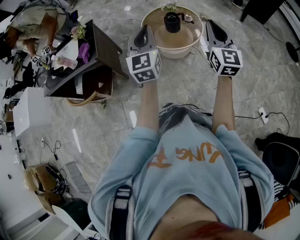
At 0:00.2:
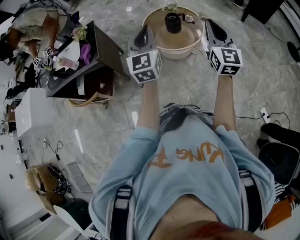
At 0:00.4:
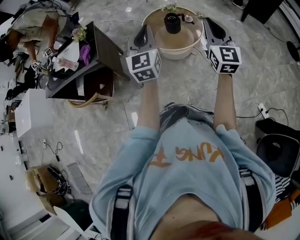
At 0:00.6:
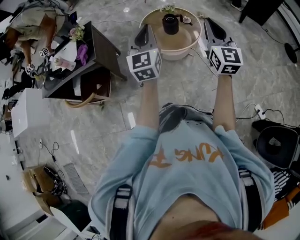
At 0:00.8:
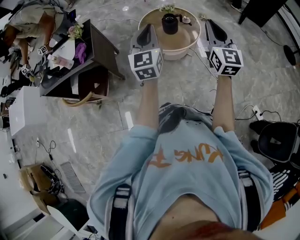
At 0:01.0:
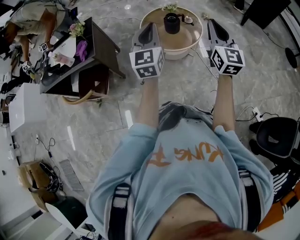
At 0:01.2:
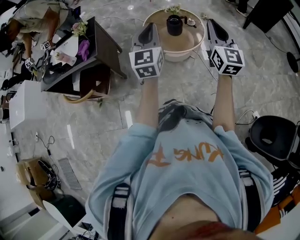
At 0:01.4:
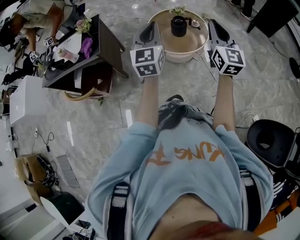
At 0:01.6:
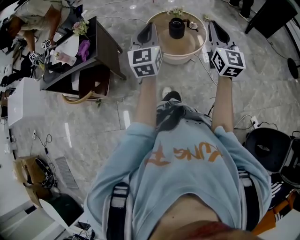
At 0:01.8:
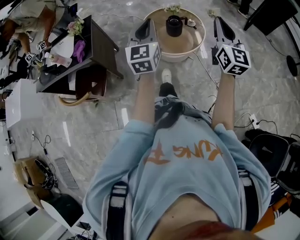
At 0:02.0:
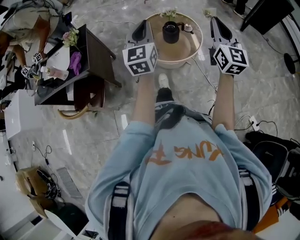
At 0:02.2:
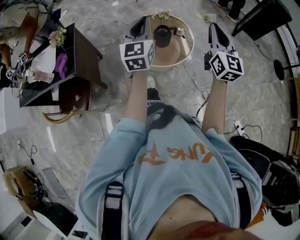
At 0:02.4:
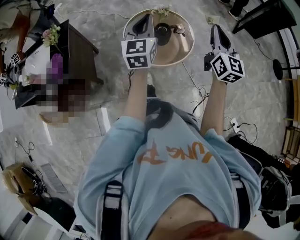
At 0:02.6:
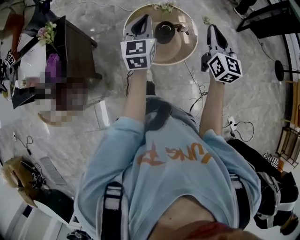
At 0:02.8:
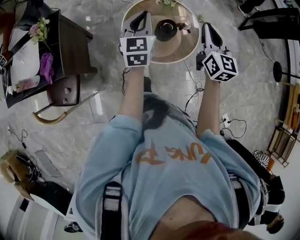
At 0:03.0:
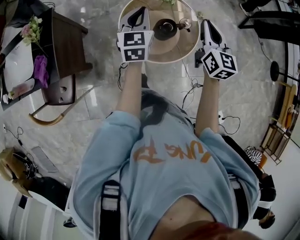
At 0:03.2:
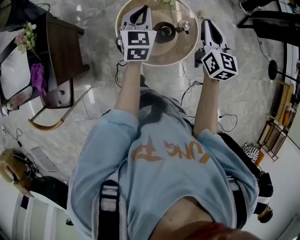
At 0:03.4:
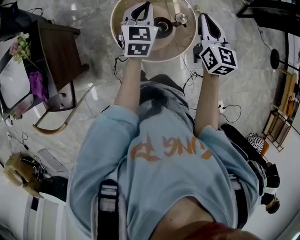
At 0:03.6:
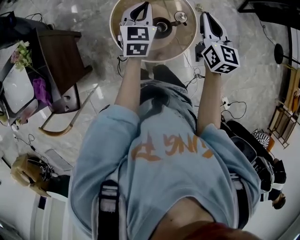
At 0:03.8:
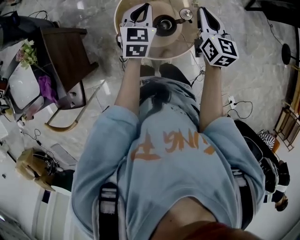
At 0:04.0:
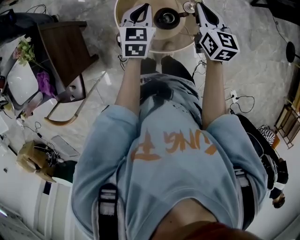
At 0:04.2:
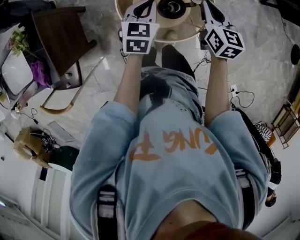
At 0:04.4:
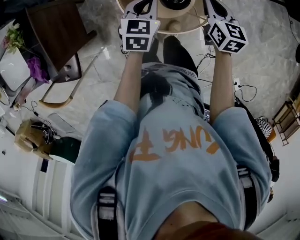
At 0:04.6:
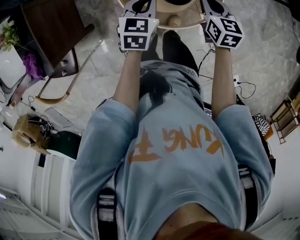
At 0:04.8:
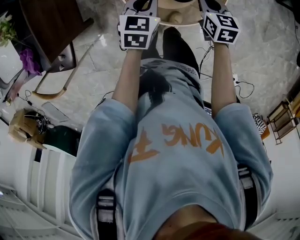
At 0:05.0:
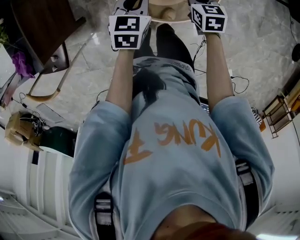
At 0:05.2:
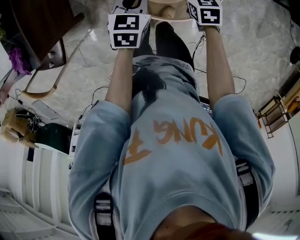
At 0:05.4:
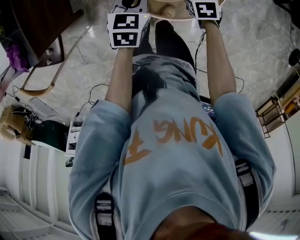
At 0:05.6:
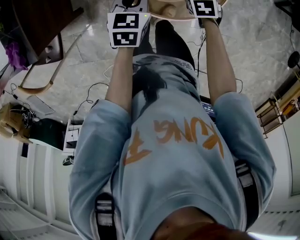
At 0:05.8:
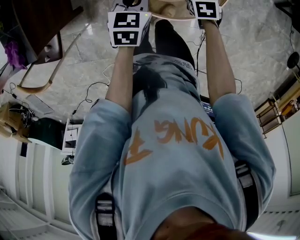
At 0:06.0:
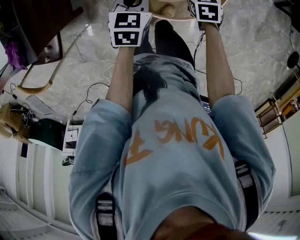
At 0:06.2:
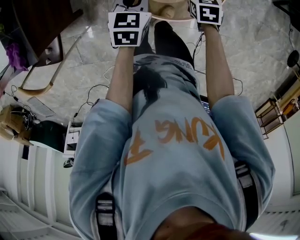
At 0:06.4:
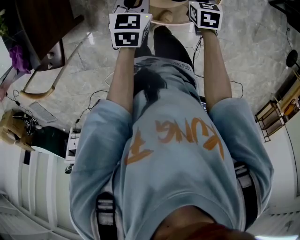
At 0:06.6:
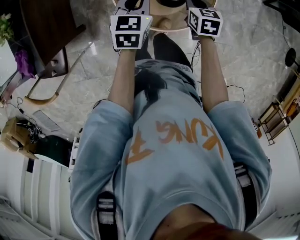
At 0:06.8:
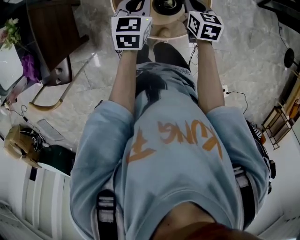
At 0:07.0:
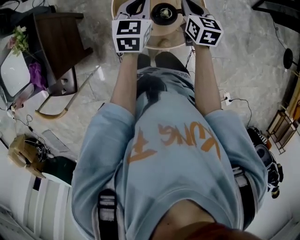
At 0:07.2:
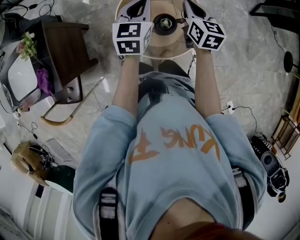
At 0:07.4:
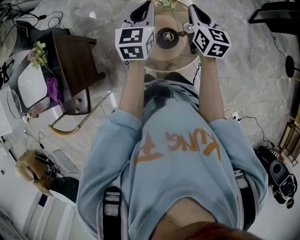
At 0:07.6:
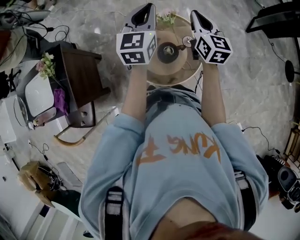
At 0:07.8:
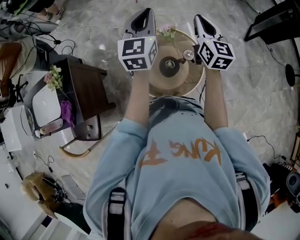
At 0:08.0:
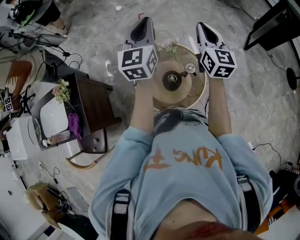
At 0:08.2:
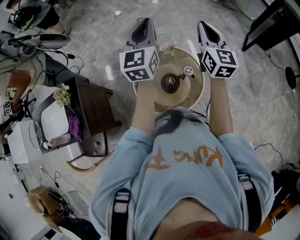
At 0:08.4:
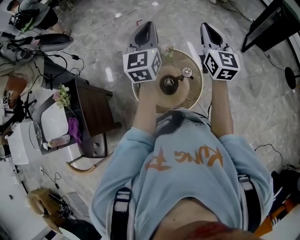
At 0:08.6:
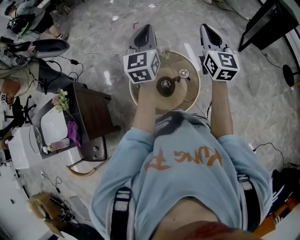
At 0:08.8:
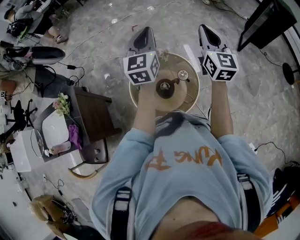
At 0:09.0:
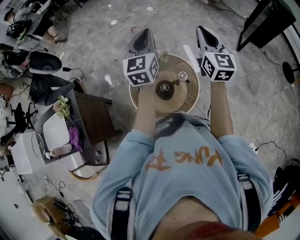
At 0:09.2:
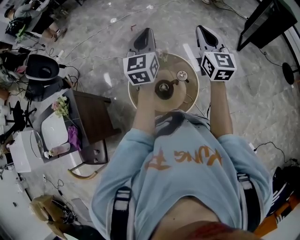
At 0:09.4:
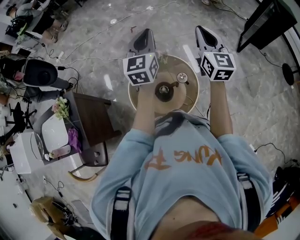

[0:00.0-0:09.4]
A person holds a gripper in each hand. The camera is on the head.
0:00.0 to 0:01.6: The grippers both shift forward by about 5 cm.
0:01.6 to 0:03.2: The two grippers travel together, forward, approximately 50 cm. The left gripper heads downward, covering approximately 20 cm, and rotates about 20 degrees. Meanwhile the right gripper swivels some 20 degrees.
0:03.2 to 0:04.8: The grippers both shift downward by roughly 20 cm. The left gripper rotates some 30 degrees; the right gripper rotates some 30 degrees.
0:04.8 to 0:06.2: The right gripper goes about 5 cm downward, and rotates approximately 20 degrees.
0:06.2 to 0:07.8: The grippers both shift upward by approximately 40 cm. The right gripper angles its fingers upward, by some 60 degrees; the left gripper tips its fingers upward by approximately 40 degrees.
0:07.8 to 0:09.4: The right gripper is displaced to the right and upward by some 10 cm. The left gripper moves to the right, roughly 5 cm.

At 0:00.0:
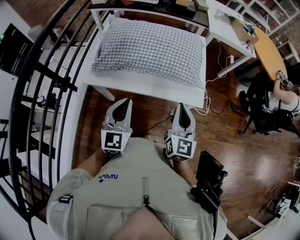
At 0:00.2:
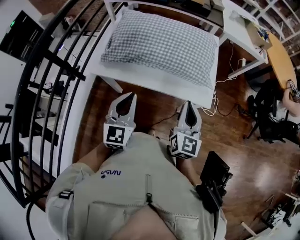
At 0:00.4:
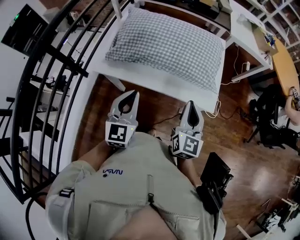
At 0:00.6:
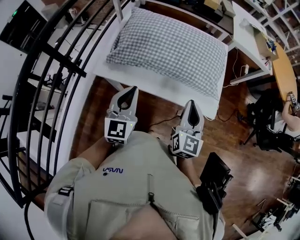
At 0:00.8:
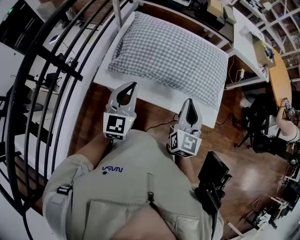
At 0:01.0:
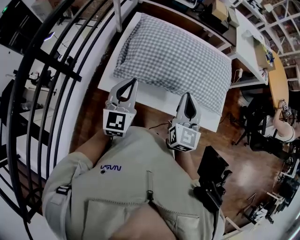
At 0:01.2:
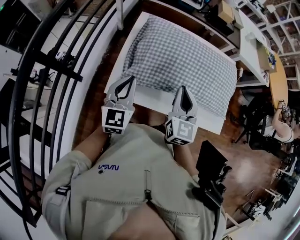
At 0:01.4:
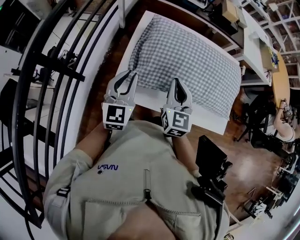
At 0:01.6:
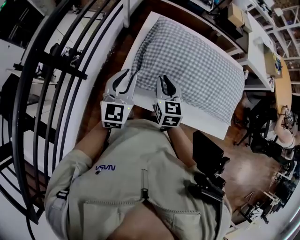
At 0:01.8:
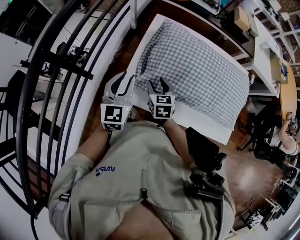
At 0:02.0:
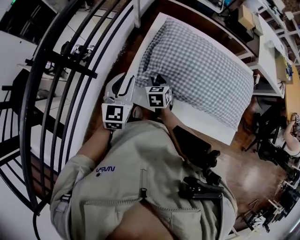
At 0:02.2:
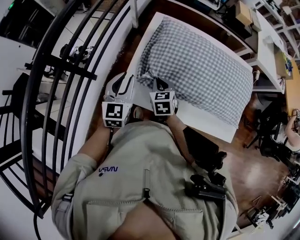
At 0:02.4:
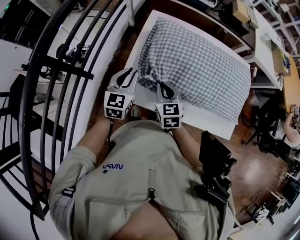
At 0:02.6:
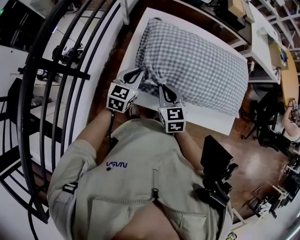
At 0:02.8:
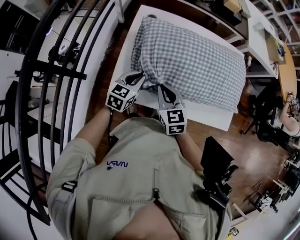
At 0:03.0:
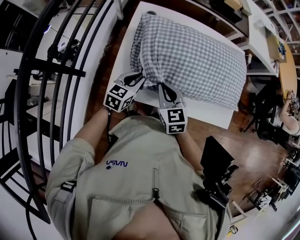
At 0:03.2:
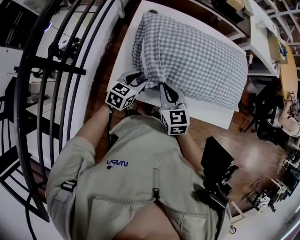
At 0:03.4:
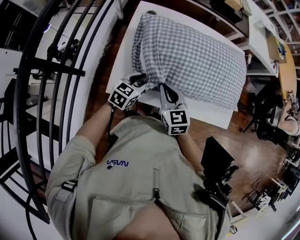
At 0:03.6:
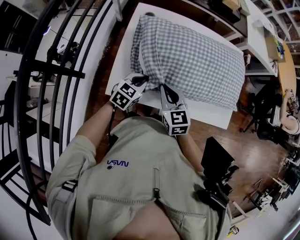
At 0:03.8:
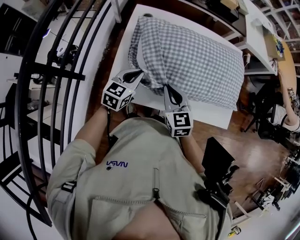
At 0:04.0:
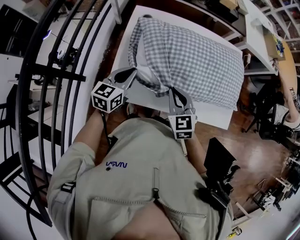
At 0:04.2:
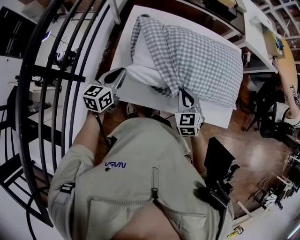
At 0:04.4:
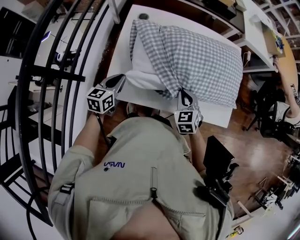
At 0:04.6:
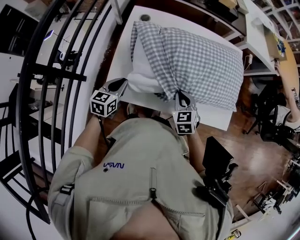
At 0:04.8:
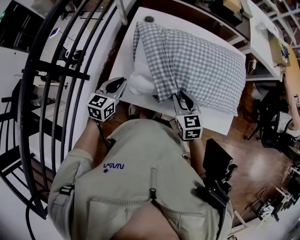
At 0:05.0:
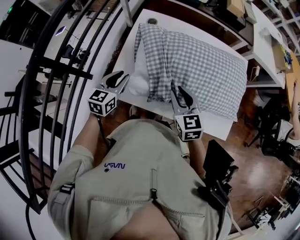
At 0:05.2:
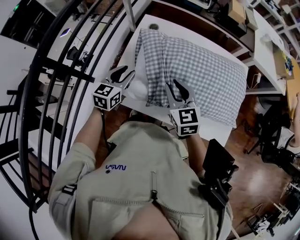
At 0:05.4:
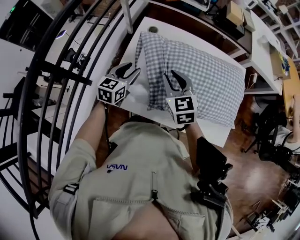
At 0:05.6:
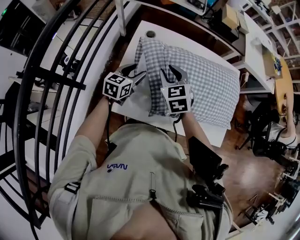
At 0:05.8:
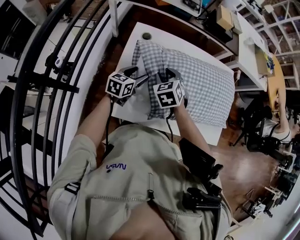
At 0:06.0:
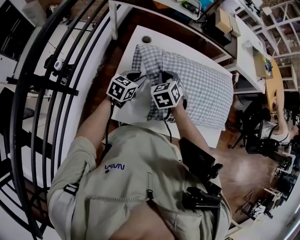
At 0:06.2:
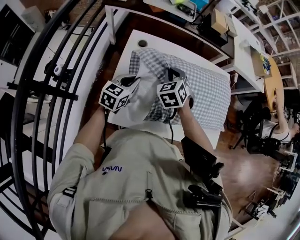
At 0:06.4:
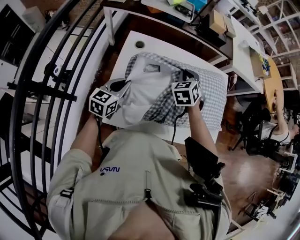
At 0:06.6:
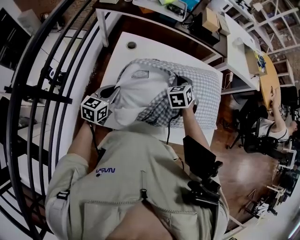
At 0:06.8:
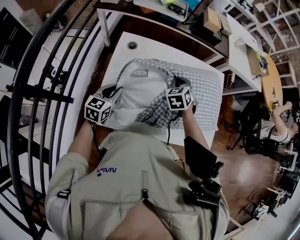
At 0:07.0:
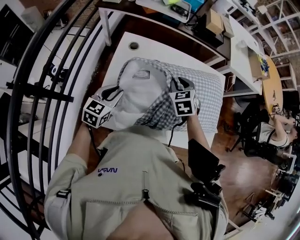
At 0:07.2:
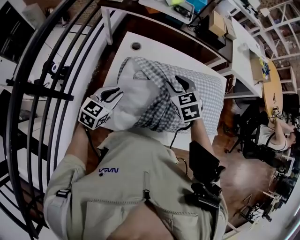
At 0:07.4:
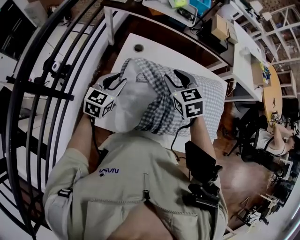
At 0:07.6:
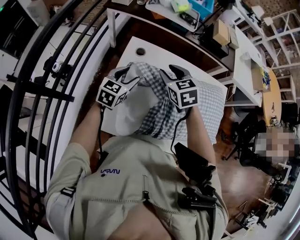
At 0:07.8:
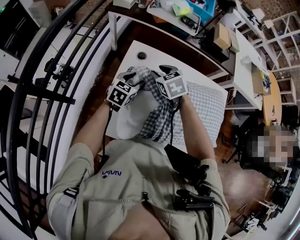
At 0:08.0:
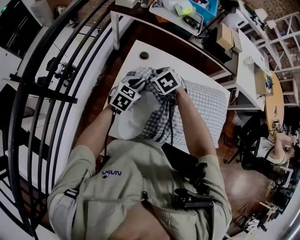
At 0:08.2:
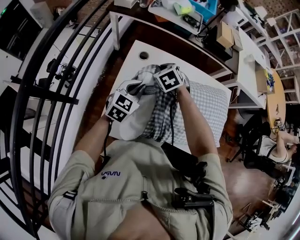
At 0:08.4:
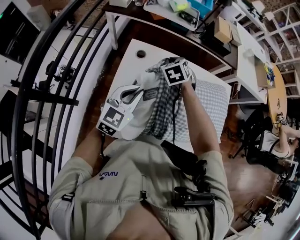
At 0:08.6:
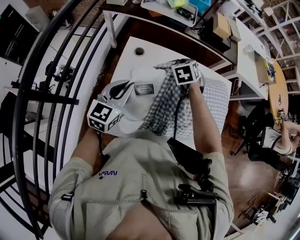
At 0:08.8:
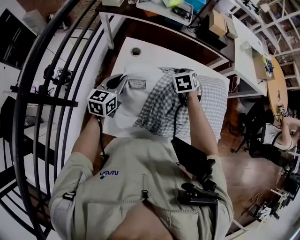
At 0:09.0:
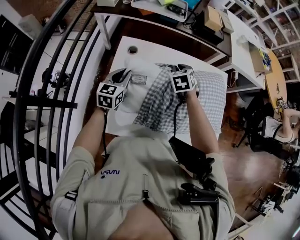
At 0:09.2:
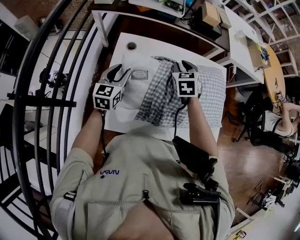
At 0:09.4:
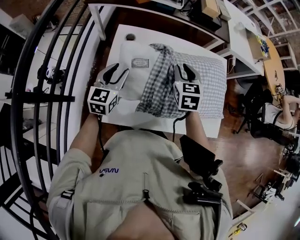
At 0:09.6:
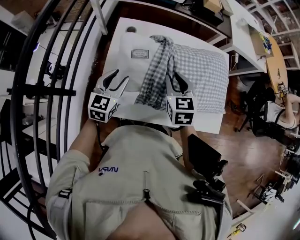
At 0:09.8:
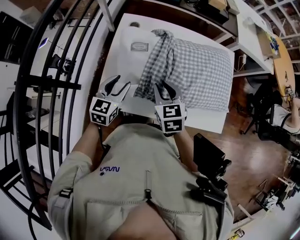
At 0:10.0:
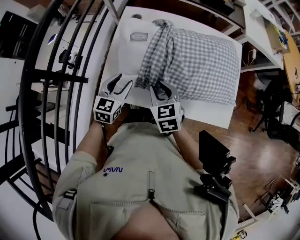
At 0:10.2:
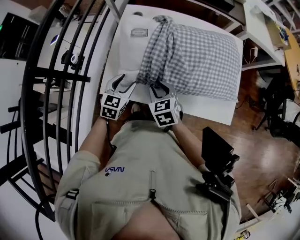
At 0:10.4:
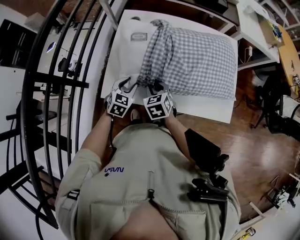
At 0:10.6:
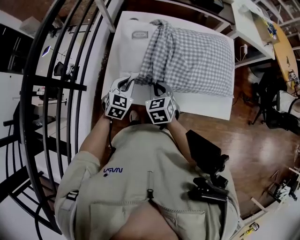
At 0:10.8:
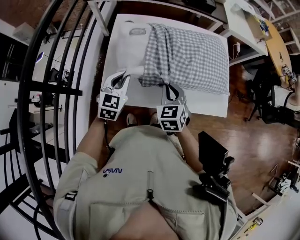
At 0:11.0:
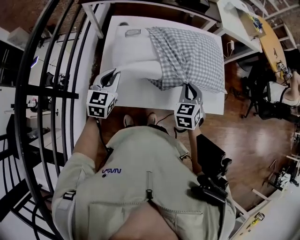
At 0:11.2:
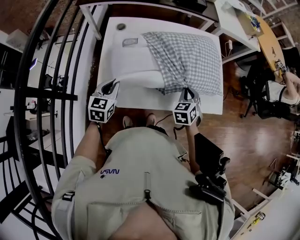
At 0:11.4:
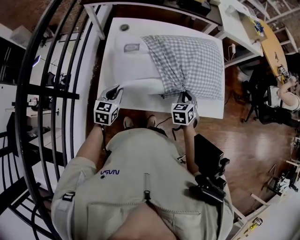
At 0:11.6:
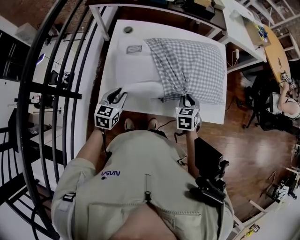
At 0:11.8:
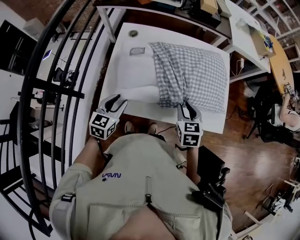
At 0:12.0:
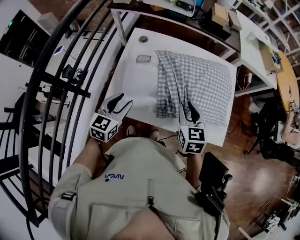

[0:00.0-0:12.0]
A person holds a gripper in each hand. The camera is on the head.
0:00.0 to 0:01.6: Both grippers move to the left and forward, some 40 cm. The right gripper rotates approximately 30 degrees.
0:01.6 to 0:03.0: The right gripper heads backward, covering about 5 cm, goes downward and returns, some 10 cm each way, and opens, then closes once more; the left gripper goes approximately 15 cm downward and to the right, and rotates approximately 40 degrees.
0:03.0 to 0:04.4: The left gripper heads to the left, covering approximately 5 cm. Meanwhile the right gripper moves to the right, approximately 15 cm, and changes its angle by roughly 20 degrees.
0:04.4 to 0:06.0: The left gripper changes place by roughly 15 cm, and opens and closes again; the right gripper ends up about 20 cm from where it was, and opens and closes again.
0:06.0 to 0:07.6: The grippers both shift upward and forward by some 10 cm. The left gripper opens up; the right gripper reaches some 15 cm to the right, then returns, swivels roughly 20 degrees, and opens up.
0:07.6 to 0:09.0: The right gripper is displaced to the right, downward and forward by some 15 cm, changes its angle by some 20 degrees, and closes its fingers, while the left gripper reaches about 10 cm upward, then returns, and closes its fingers.
0:09.0 to 0:10.4: The right gripper heads backward, covering about 30 cm, and opens up, while the left gripper shifts about 25 cm backward and downward, and changes its angle by roughly 30 degrees.
0:10.4 to 0:12.0: The right gripper goes roughly 20 cm upward and to the right, turns by roughly 20 degrees, and closes and opens again. The left gripper goes up and down, approximately 15 cm each way, reversing 2 times, changes its angle by roughly 20 degrees, and closes and opens again.

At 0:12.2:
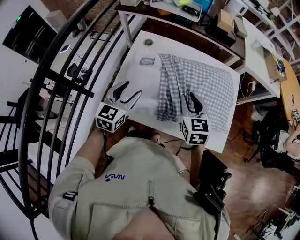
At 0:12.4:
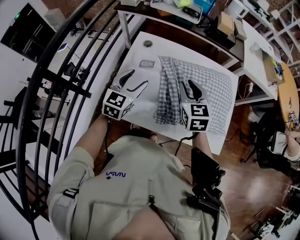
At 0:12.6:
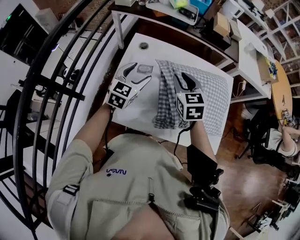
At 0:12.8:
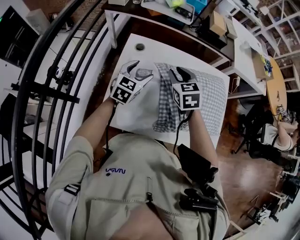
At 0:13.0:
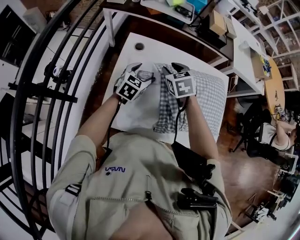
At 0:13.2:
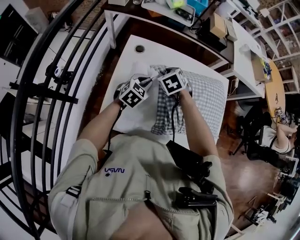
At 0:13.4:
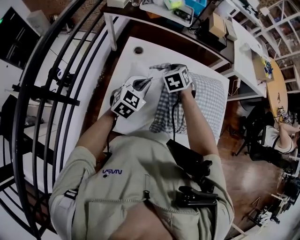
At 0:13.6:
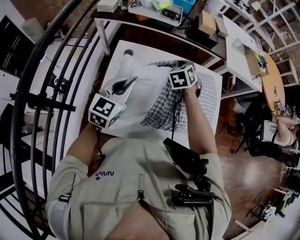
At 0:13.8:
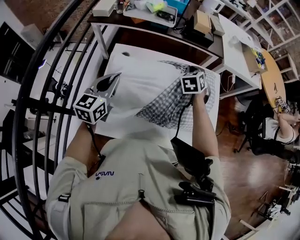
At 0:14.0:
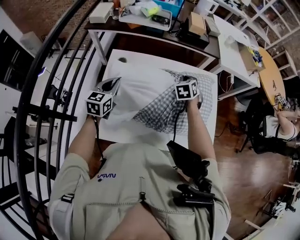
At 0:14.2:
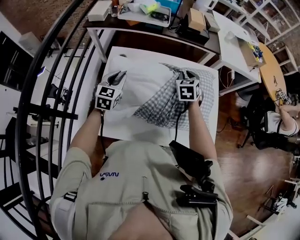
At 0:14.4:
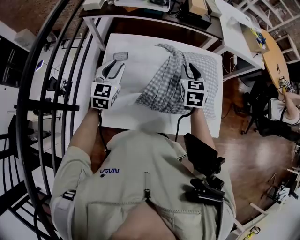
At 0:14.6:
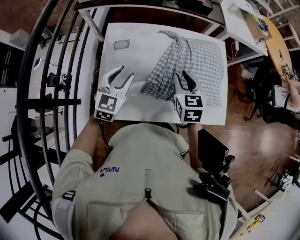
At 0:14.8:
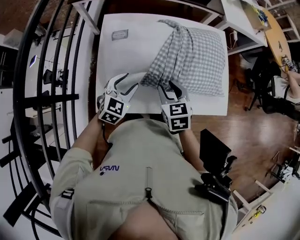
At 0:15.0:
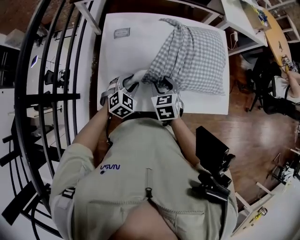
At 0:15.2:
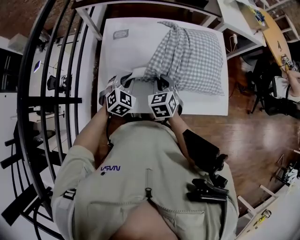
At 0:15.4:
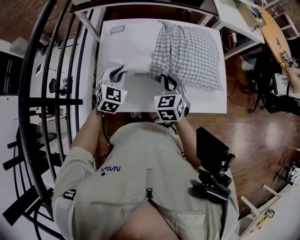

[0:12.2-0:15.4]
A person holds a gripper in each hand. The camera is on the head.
0:12.2 to 0:13.8: The left gripper goes approximately 15 cm forward and upward, and closes up. The right gripper moves forward, approximately 25 cm, swivels approximately 30 degrees, and closes up.
0:13.8 to 0:15.4: The left gripper goes up and down, approximately 20 cm each way, reversing 3 times, rotates some 40 degrees, and opens, then closes once more; the right gripper travels backward by roughly 25 cm, and opens, then closes again.
